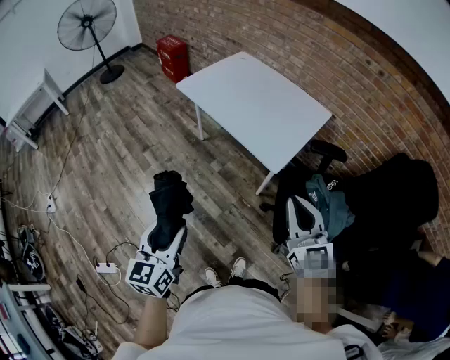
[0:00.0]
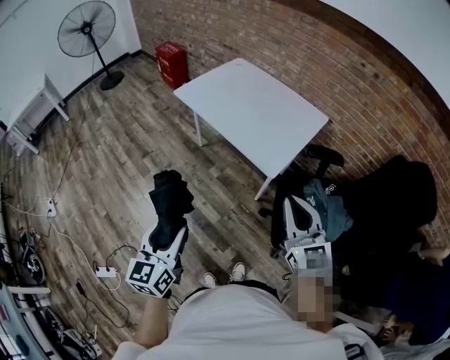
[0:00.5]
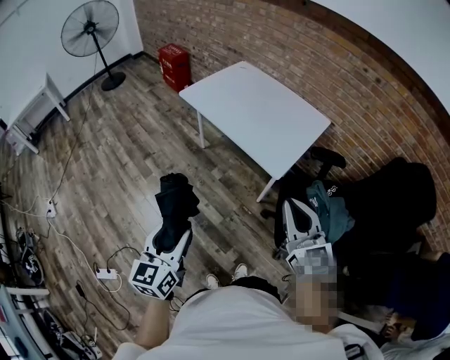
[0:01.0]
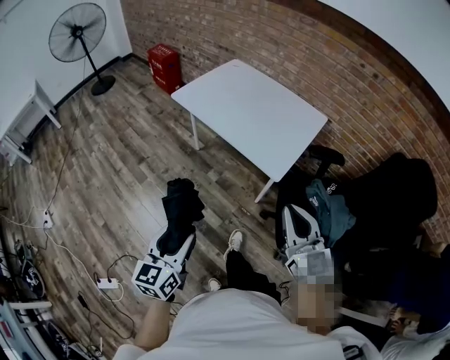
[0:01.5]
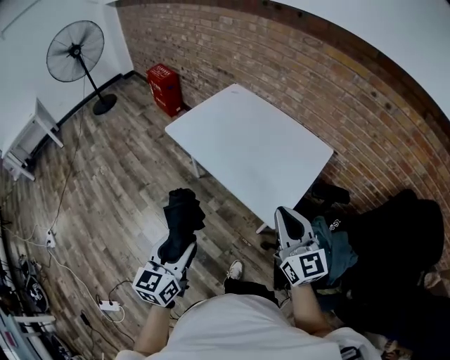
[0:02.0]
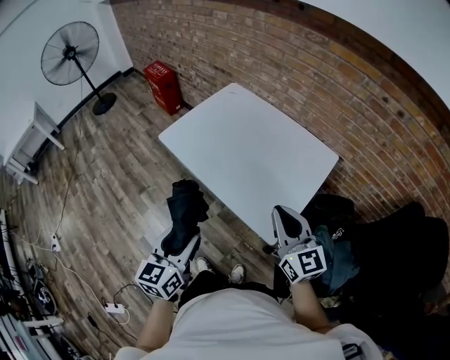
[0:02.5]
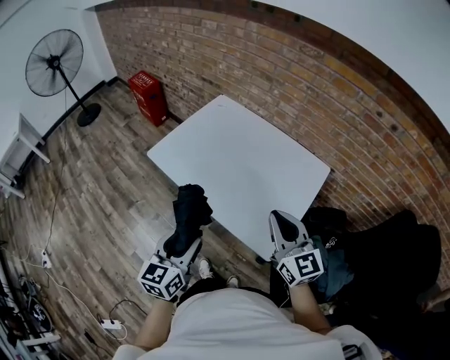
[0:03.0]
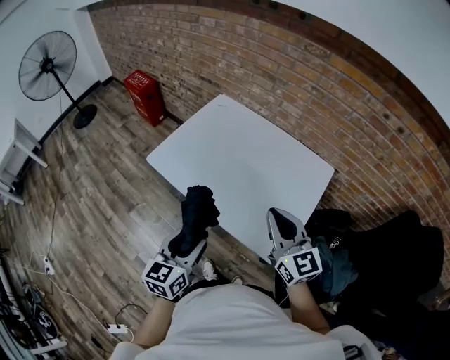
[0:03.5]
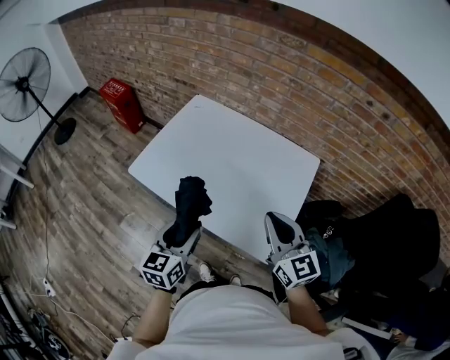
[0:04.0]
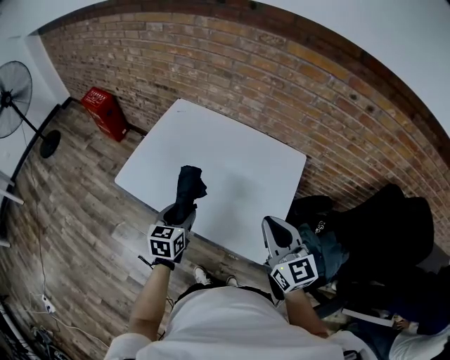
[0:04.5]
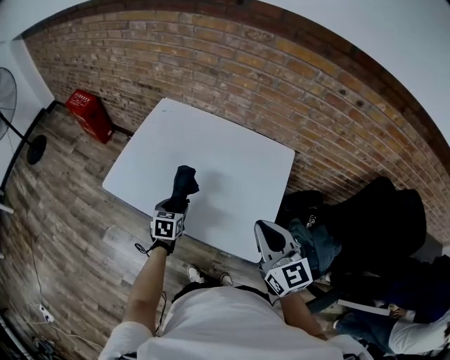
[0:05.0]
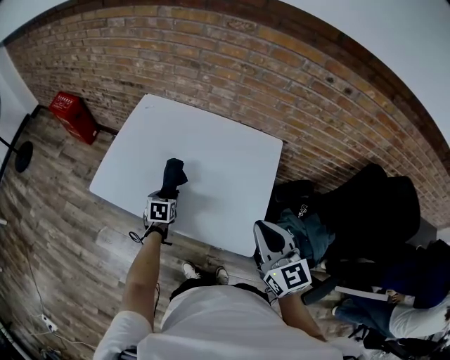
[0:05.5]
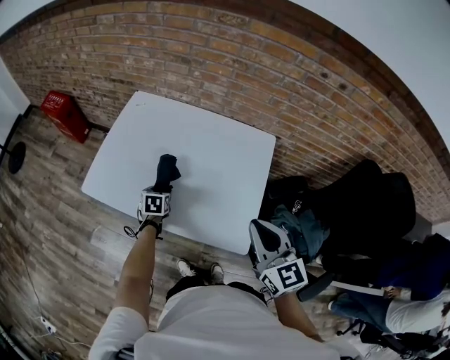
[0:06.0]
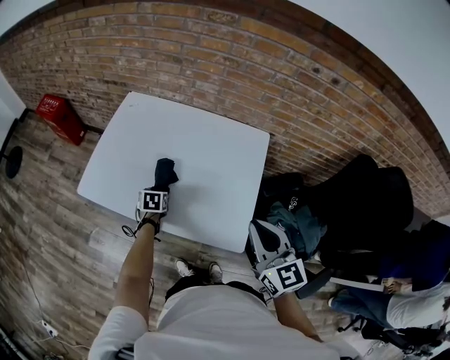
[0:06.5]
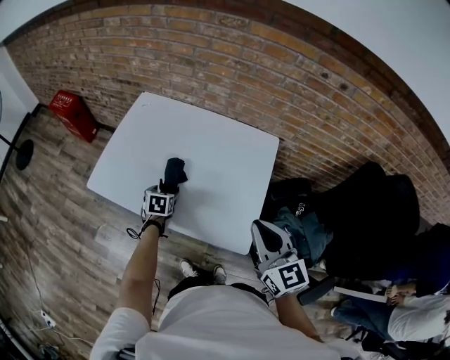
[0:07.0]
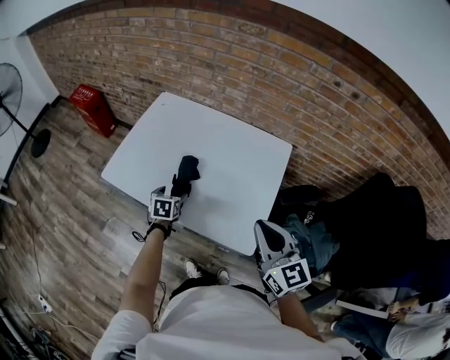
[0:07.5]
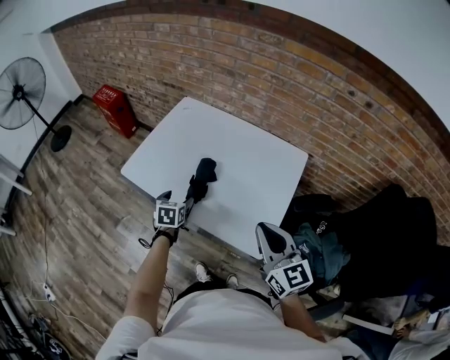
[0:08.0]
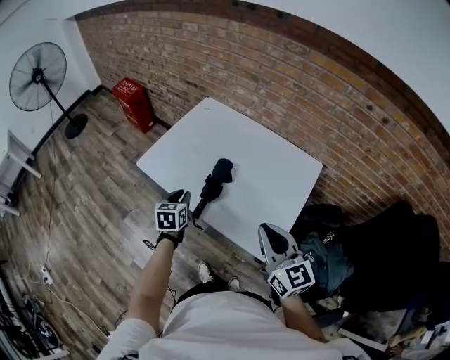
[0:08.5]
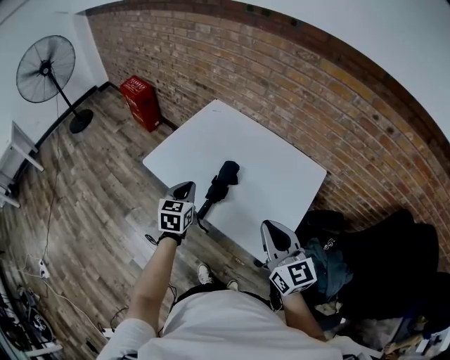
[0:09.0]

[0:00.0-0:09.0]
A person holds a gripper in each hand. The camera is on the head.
0:00.0 to 0:02.0: The grippers both shift forward by some 20 cm.
0:02.0 to 0:04.5: The left gripper is displaced forward by approximately 35 cm, and turns by approximately 20 degrees; the right gripper moves forward, approximately 20 cm.
0:04.5 to 0:07.0: The left gripper moves downward and forward, roughly 15 cm, turns by some 20 degrees, and opens its fingers; the right gripper changes place by about 5 cm.
0:07.0 to 0:09.0: The left gripper goes roughly 20 cm upward and to the left, turns by some 30 degrees, and closes; the right gripper travels to the left by some 10 cm.

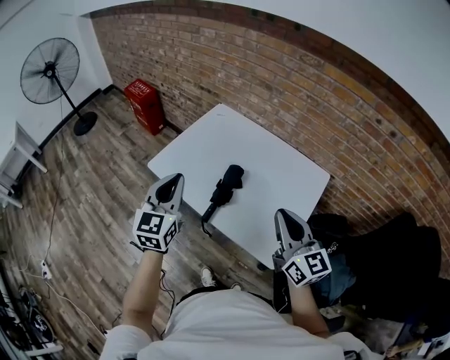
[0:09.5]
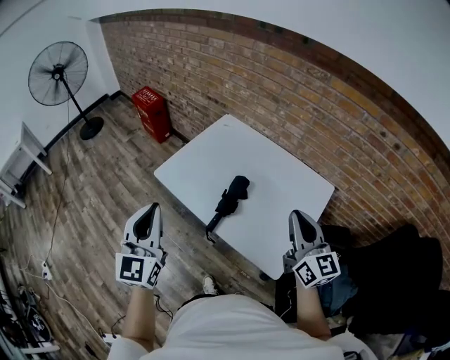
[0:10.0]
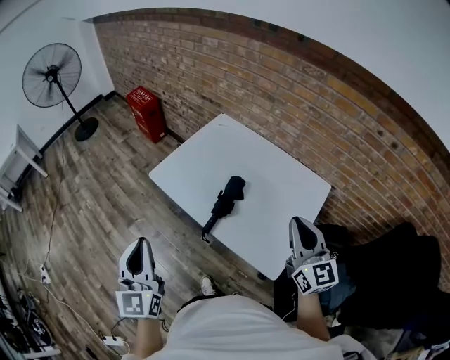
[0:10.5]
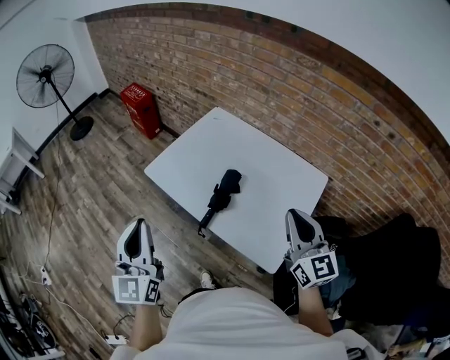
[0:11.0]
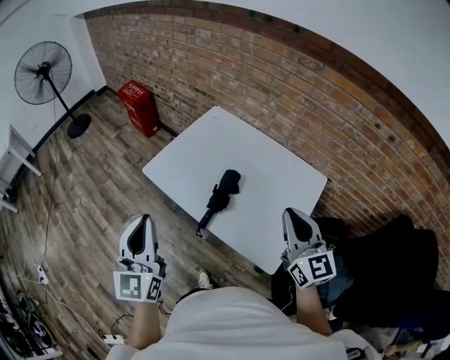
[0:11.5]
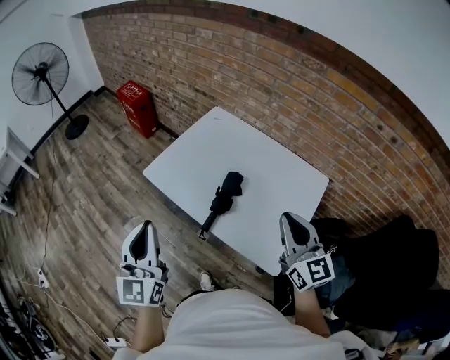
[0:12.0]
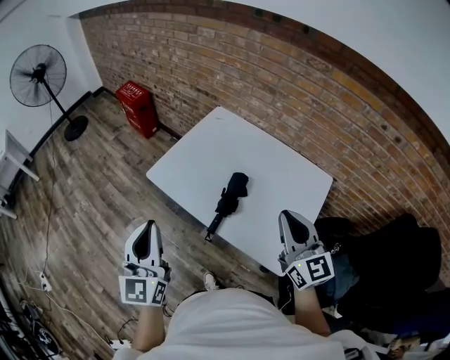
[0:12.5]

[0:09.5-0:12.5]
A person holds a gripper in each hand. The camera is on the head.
0:09.5 to 0:11.0: The left gripper shifts some 15 cm backward and to the left.
0:11.0 to 0:12.5: The right gripper is displaced to the left by roughly 5 cm.

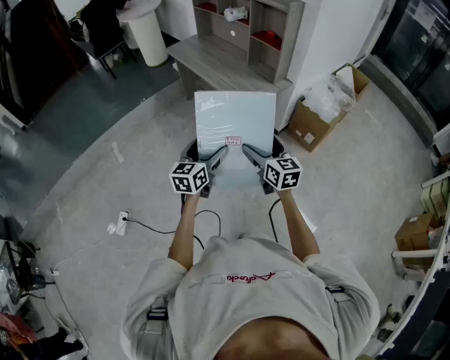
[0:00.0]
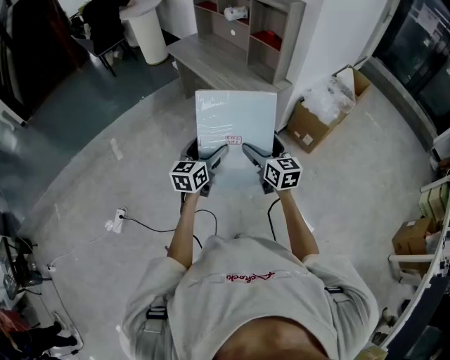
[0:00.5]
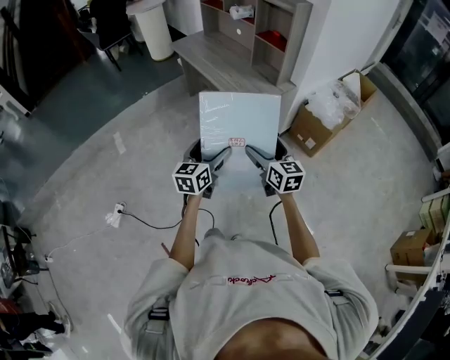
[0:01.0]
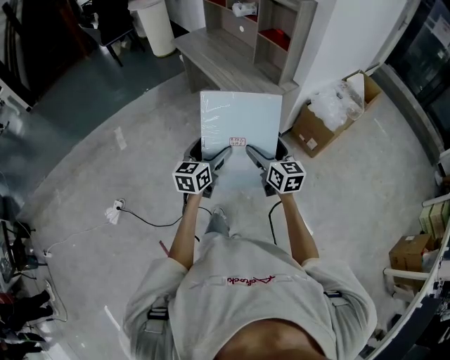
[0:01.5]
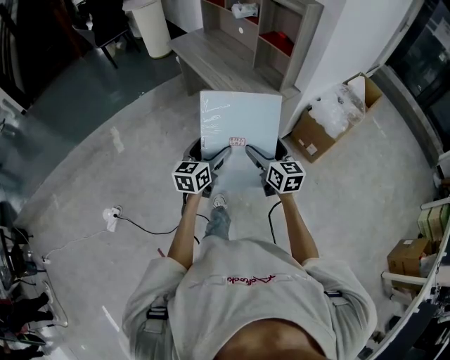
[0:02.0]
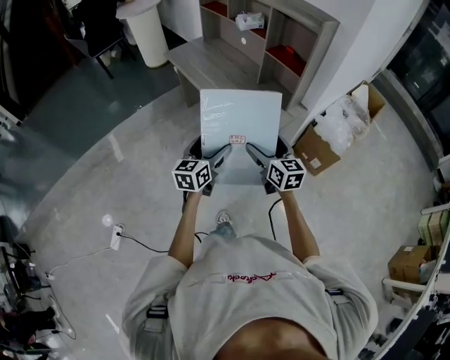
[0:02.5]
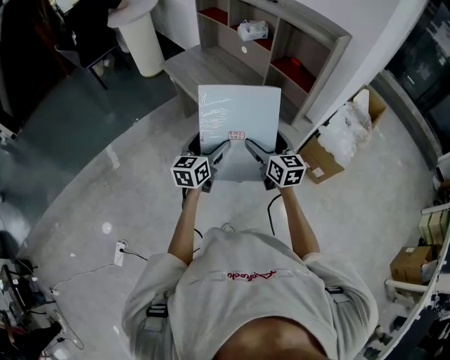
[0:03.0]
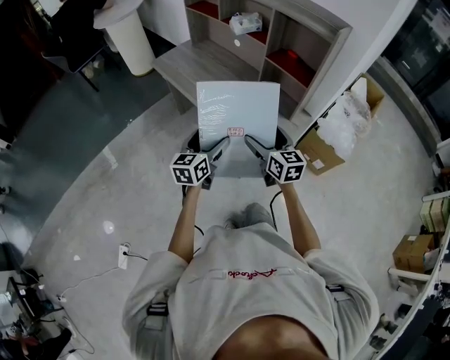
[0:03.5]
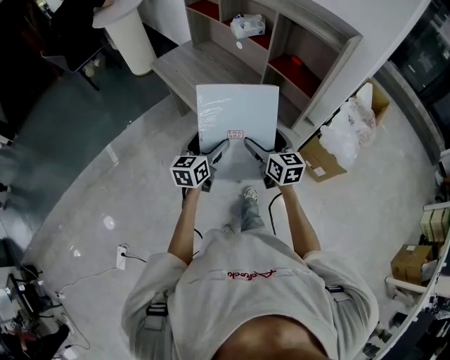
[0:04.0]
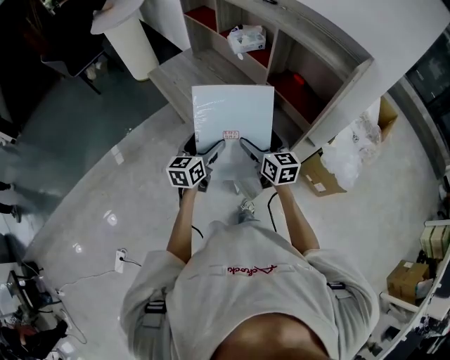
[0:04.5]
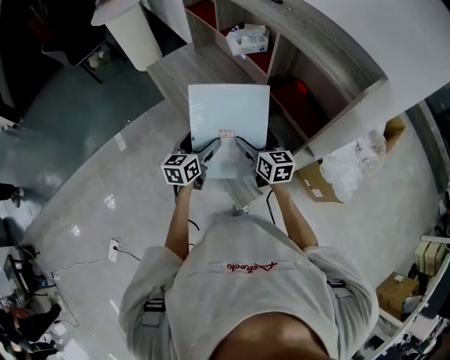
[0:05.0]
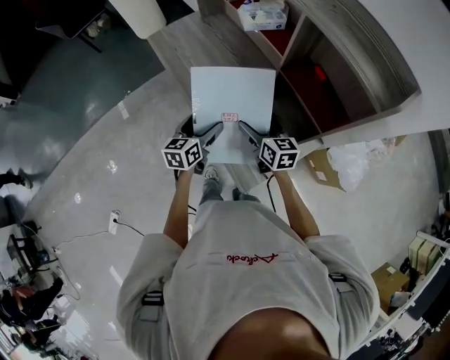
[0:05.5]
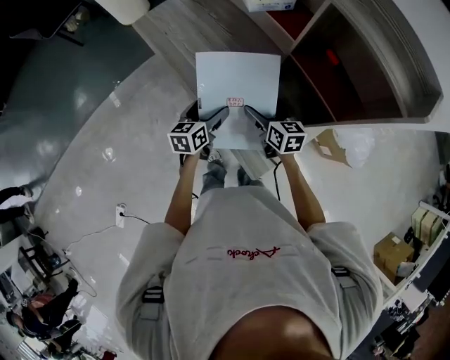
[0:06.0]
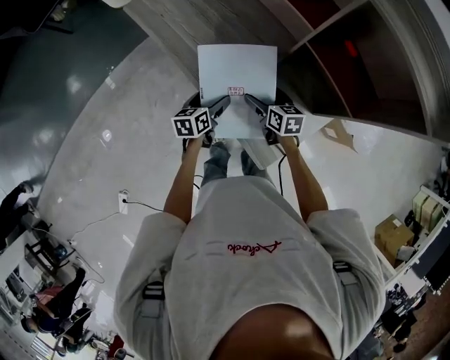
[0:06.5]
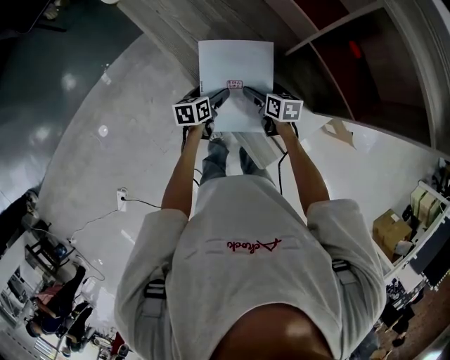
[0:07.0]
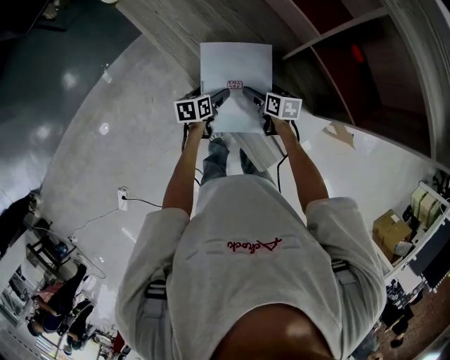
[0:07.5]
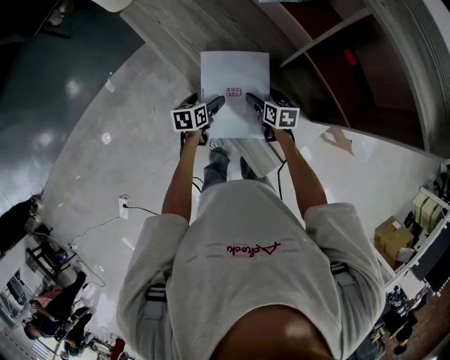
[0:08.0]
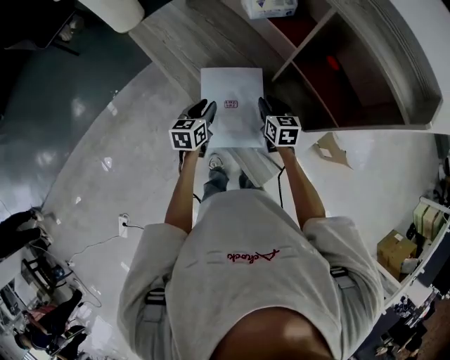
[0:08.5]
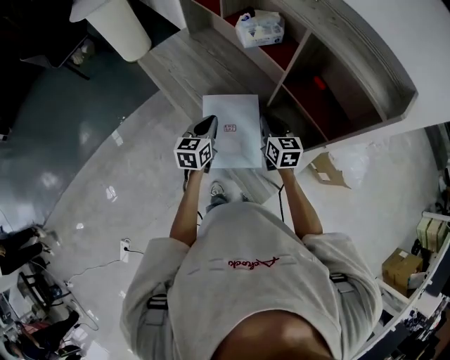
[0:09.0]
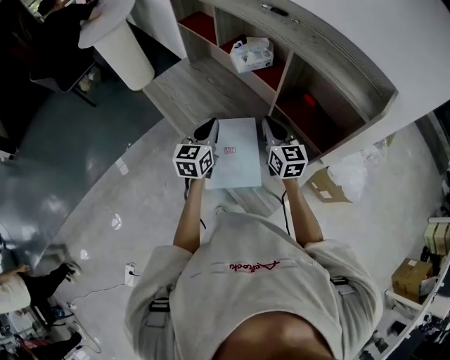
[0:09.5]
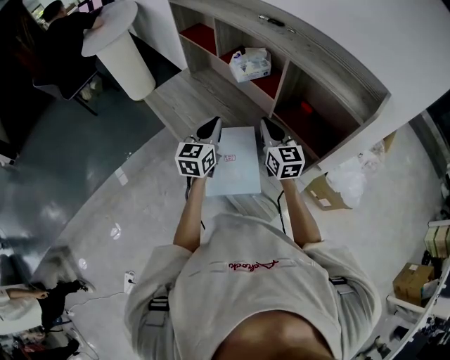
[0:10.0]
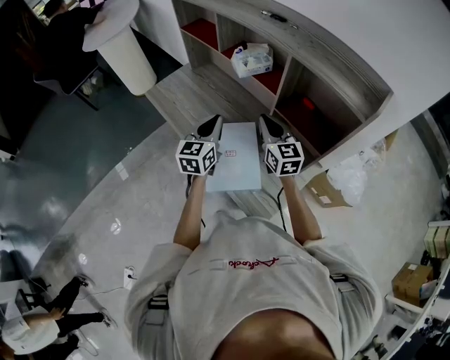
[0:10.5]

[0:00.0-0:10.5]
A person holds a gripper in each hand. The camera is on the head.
0:00.0 to 0:02.0: Both grippers travel together forward, approximately 10 cm.
0:02.0 to 0:04.0: The two grippers go approximately 35 cm forward.
0:04.0 to 0:06.5: The two grippers go roughly 30 cm forward and downward. The right gripper swivels about 30 degrees; the left gripper rotates some 30 degrees.
0:06.5 to 0:08.5: The right gripper ends up approximately 5 cm from where it was, and closes; the left gripper moves upward, some 5 cm, and closes its fingers.
0:08.5 to 0:10.5: Both grippers move upward, about 20 cm. The right gripper swivels approximately 30 degrees, while the left gripper turns by roughly 30 degrees.

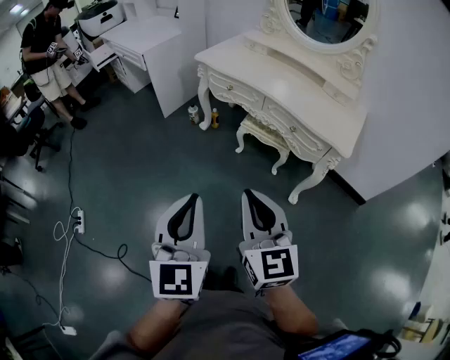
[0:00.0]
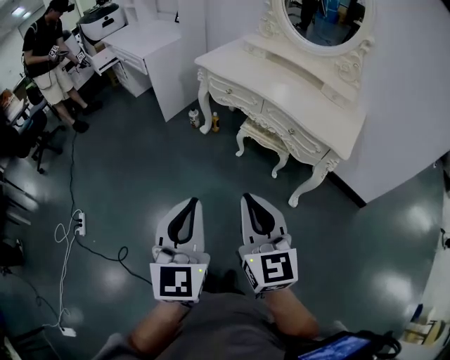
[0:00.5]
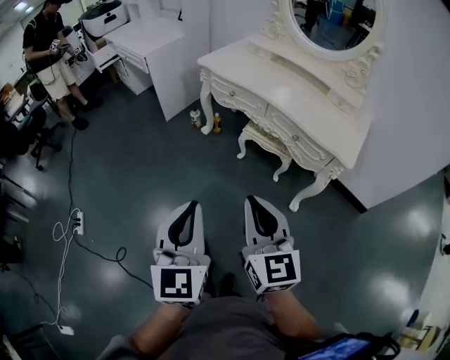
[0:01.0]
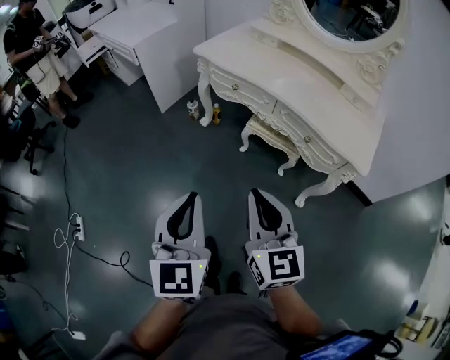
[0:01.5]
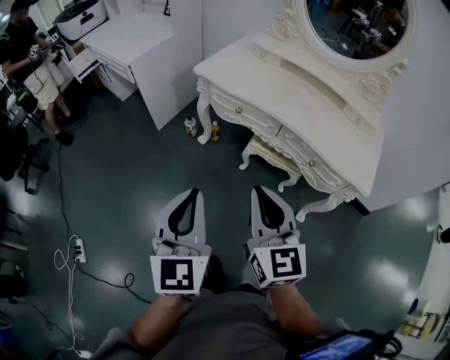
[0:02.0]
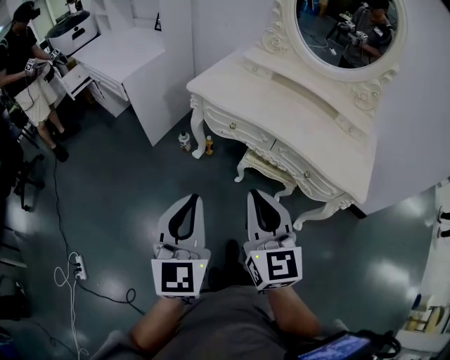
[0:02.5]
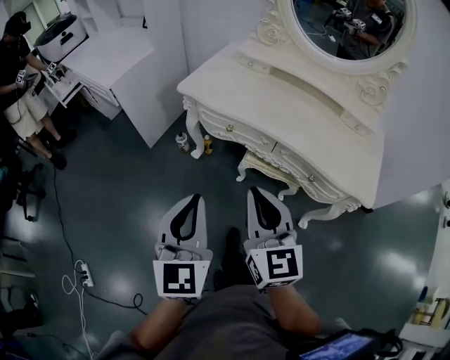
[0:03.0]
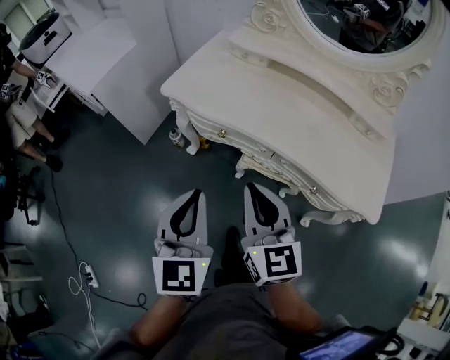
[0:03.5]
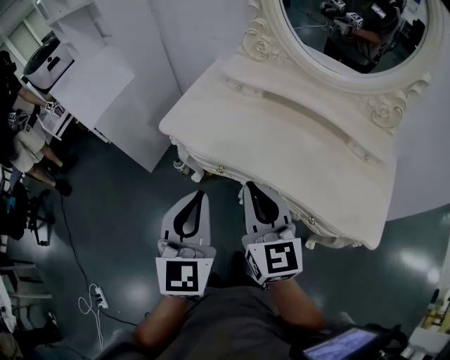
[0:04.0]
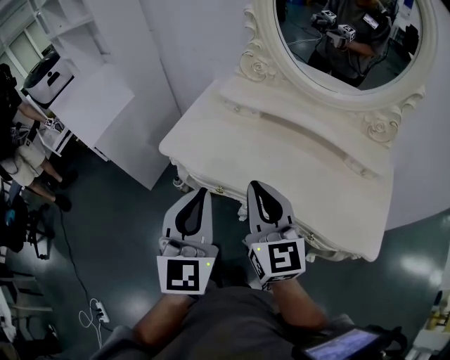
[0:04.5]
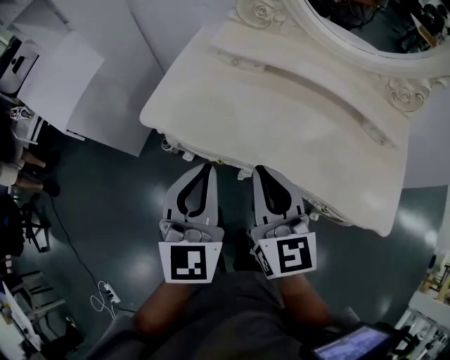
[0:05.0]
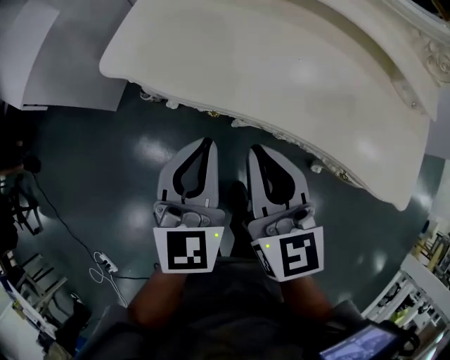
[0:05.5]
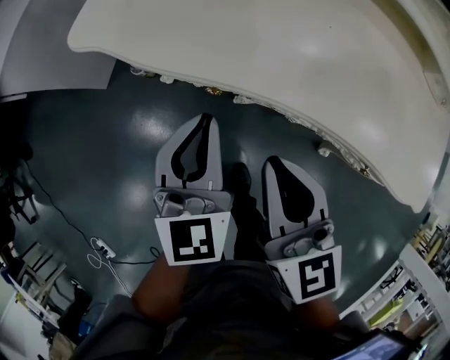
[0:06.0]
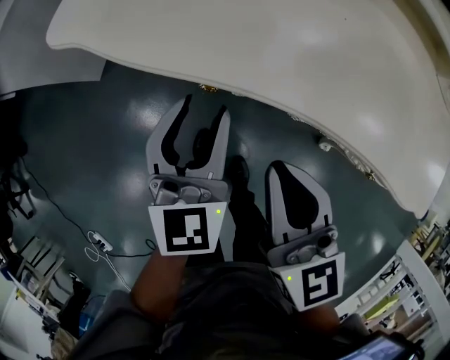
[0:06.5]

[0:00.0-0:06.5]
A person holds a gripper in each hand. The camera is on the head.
0:00.0 to 0:02.0: Both grippers travel together forward, roughly 25 cm.
0:02.0 to 0:04.5: The grippers both shift forward by about 35 cm.
0:04.5 to 0:06.5: Both grippers move downward, some 30 cm. The right gripper changes its angle by about 20 degrees. Meanwhile the left gripper opens its fingers.
